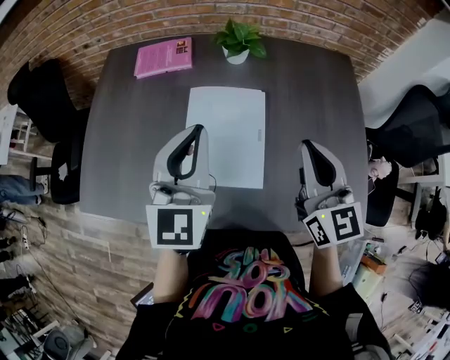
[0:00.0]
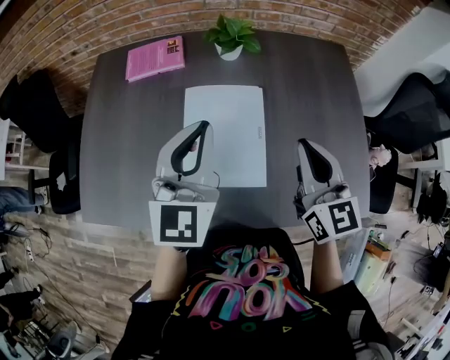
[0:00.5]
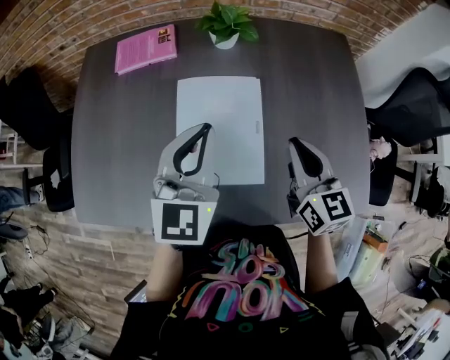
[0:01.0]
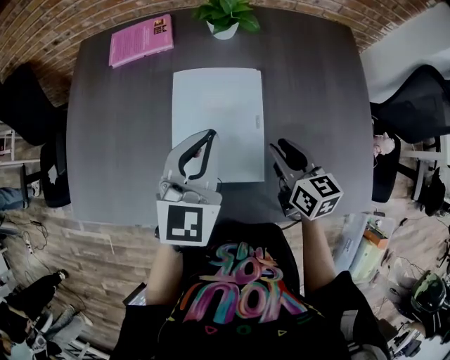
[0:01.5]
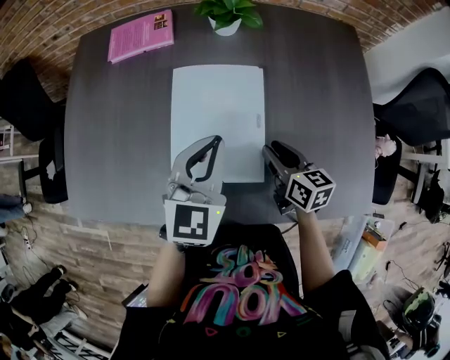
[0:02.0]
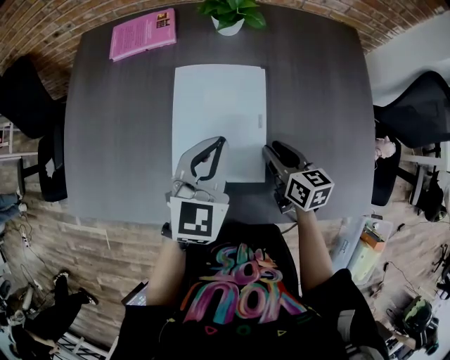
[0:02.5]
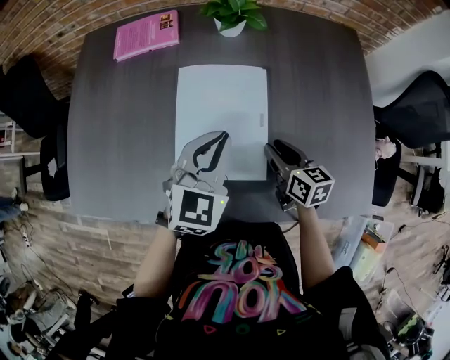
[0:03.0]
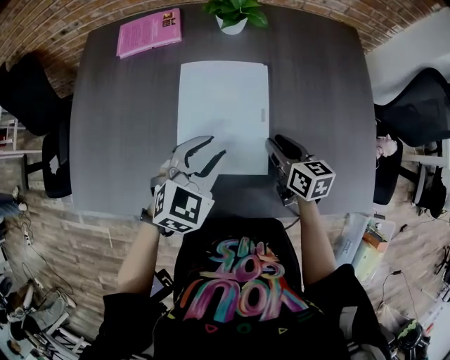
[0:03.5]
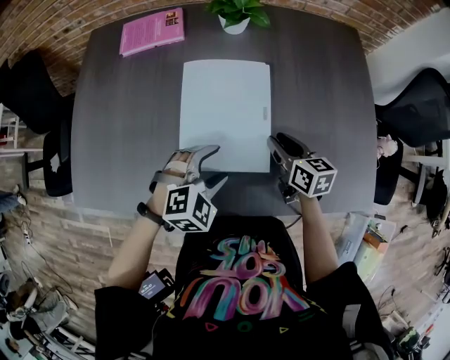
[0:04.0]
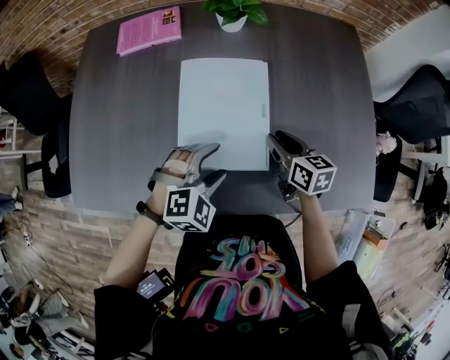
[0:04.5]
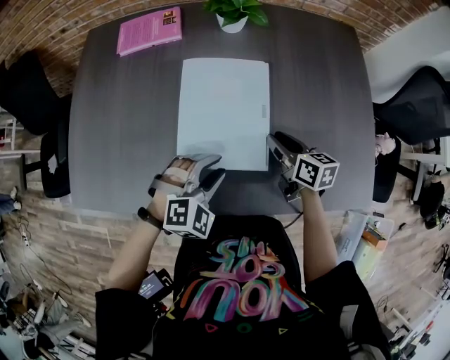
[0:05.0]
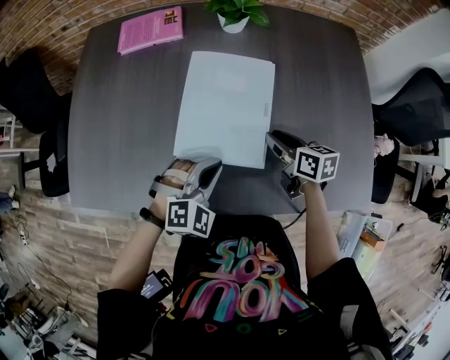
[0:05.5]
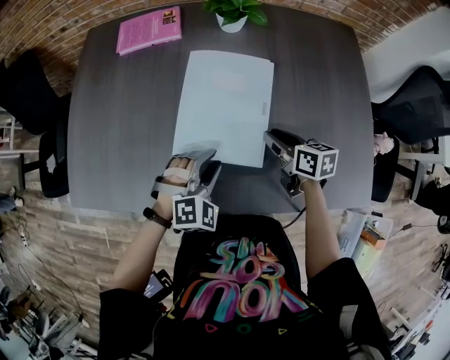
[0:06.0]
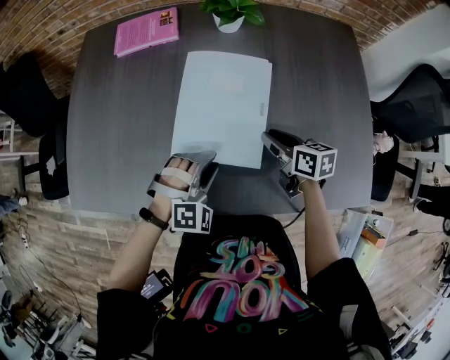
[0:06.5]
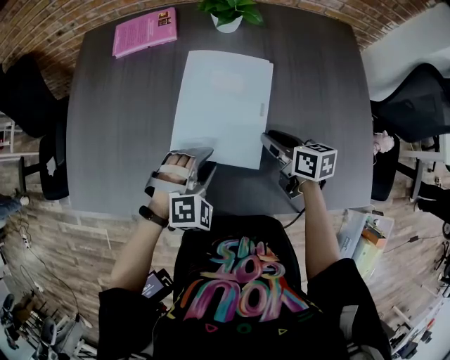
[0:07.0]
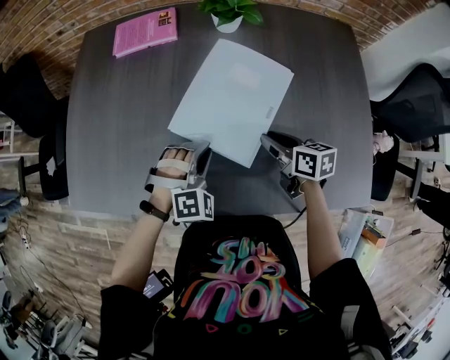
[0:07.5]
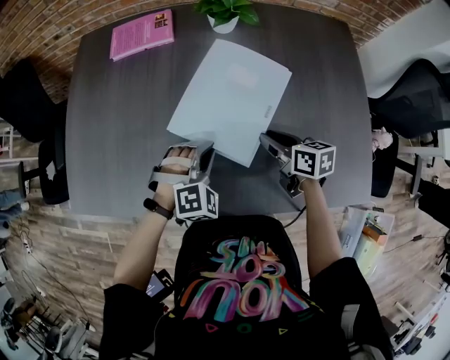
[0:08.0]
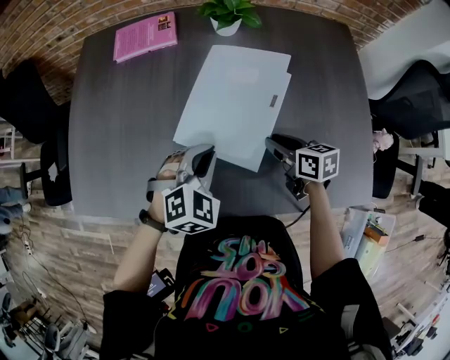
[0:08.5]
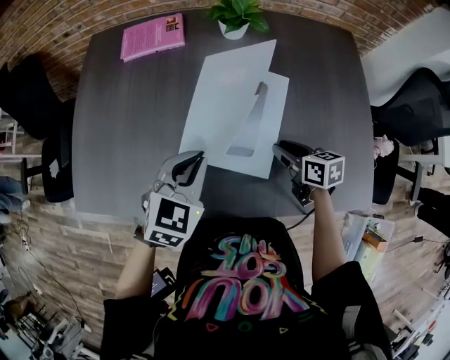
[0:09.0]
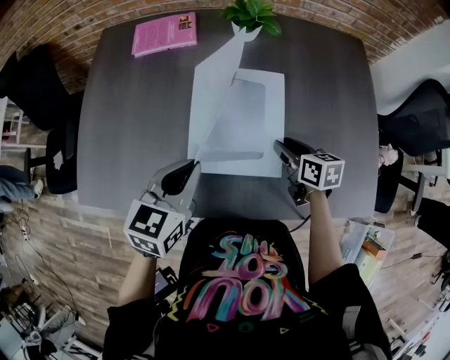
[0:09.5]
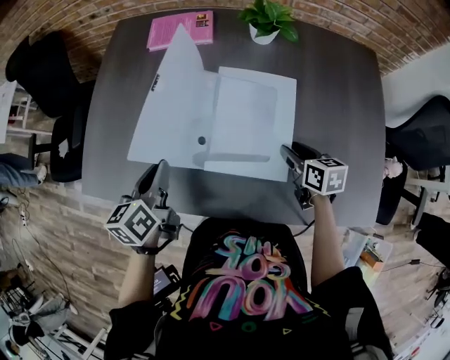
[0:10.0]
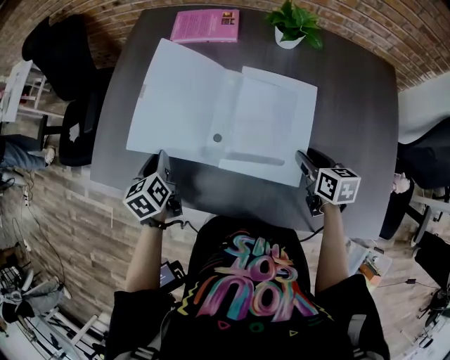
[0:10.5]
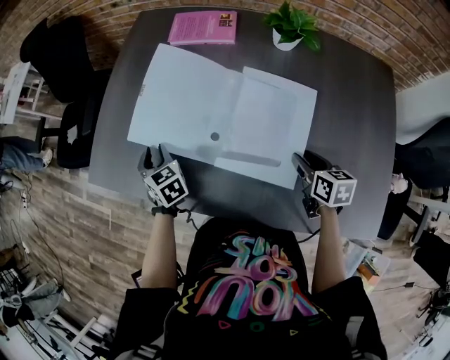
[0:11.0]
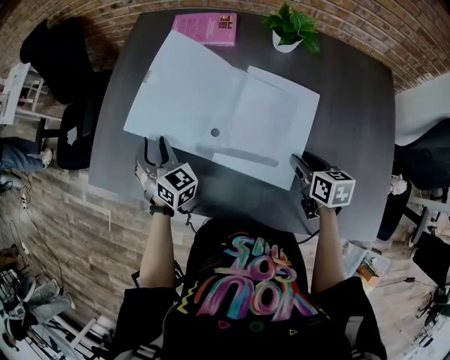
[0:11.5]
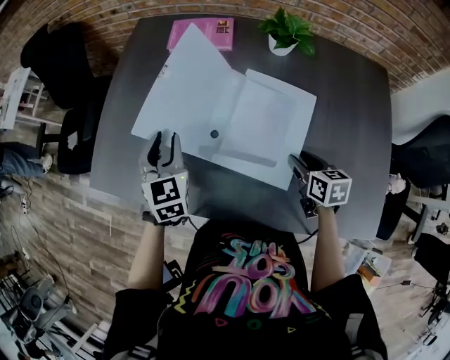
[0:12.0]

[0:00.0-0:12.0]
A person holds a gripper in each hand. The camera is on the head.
0:00.0 to 0:02.0: The right gripper is displaced downward by some 25 cm, rotates roughly 40 degrees, and opens up; the left gripper moves downward, roughly 15 cm.
0:02.0 to 0:04.0: The left gripper goes about 15 cm downward and backward, turns by approximately 50 degrees, and opens its fingers.
0:04.0 to 0:06.0: The left gripper closes up.
0:06.0 to 0:08.0: The left gripper closes.
0:08.0 to 0:10.0: The left gripper shifts some 20 cm to the left and upward, and twists roughly 100 degrees counterclockwise, seen from behind.
0:10.0 to 0:12.0: The left gripper goes downward and returns, about 10 cm each way, twists some 40 degrees clockwise, seen from behind, and opens up.

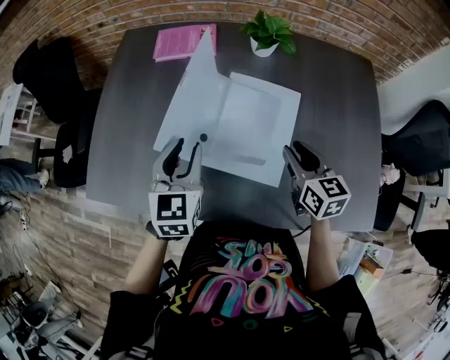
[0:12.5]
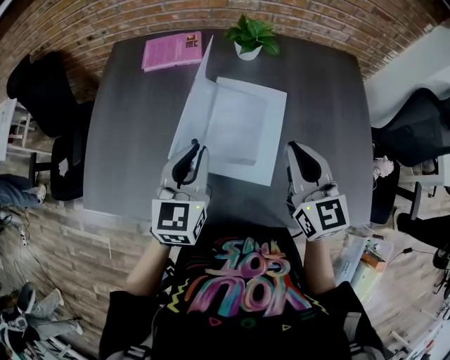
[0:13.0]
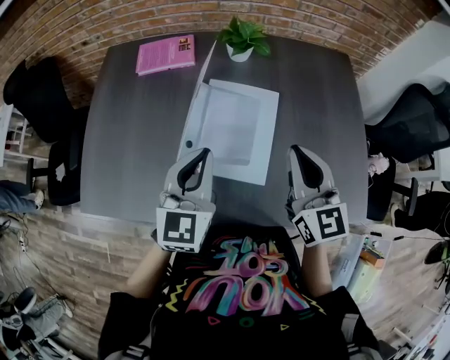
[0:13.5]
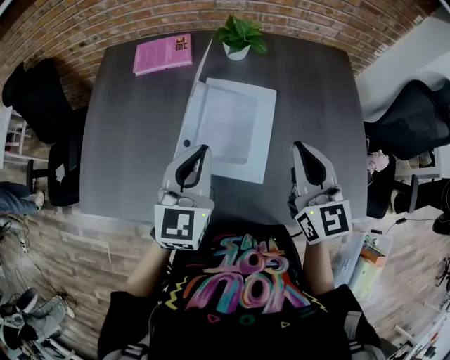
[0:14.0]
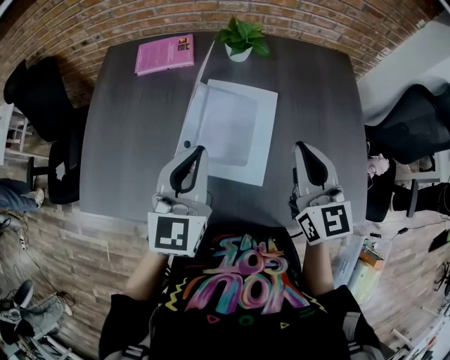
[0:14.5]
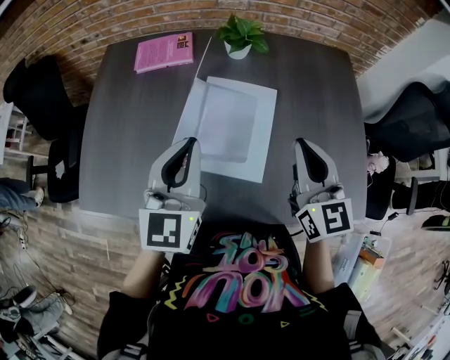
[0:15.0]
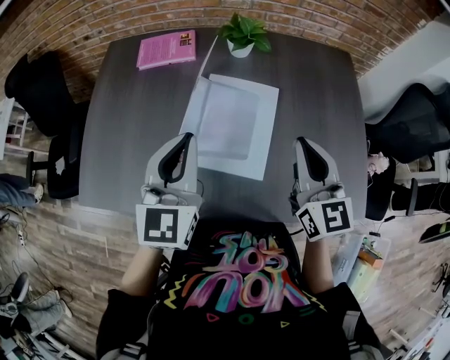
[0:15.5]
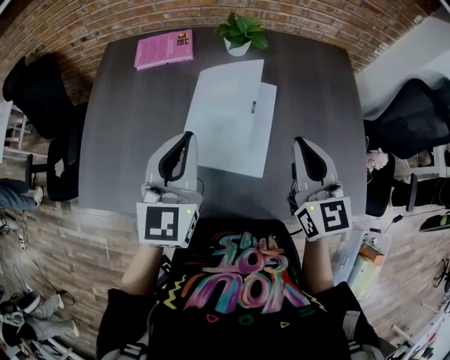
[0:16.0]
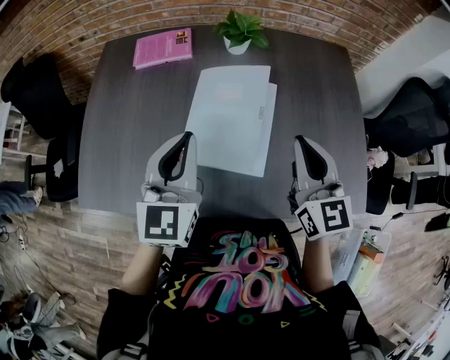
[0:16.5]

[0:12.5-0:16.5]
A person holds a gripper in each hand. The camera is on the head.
0:12.5 to 0:14.5: The left gripper heads to the right and upward, covering about 10 cm, and closes its fingers; the right gripper shifts roughly 15 cm upward, turns by approximately 30 degrees, and closes its fingers.
0:14.5 to 0:16.5: The grippers stay close to where they were, moving slightly.

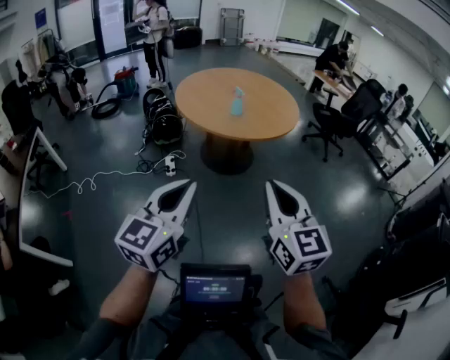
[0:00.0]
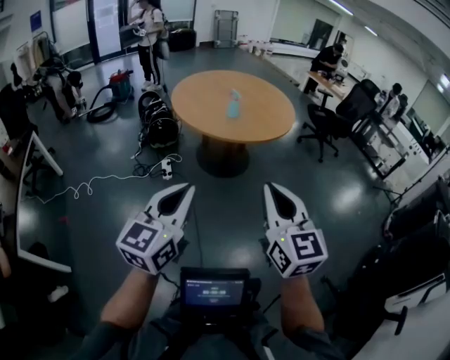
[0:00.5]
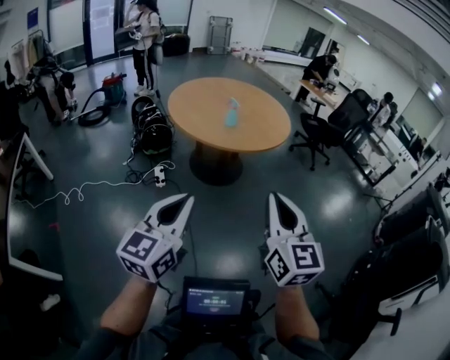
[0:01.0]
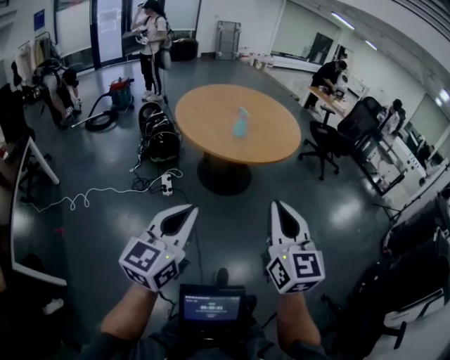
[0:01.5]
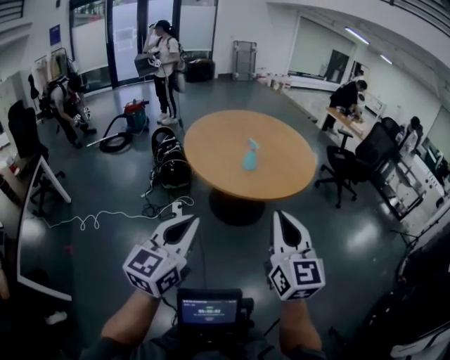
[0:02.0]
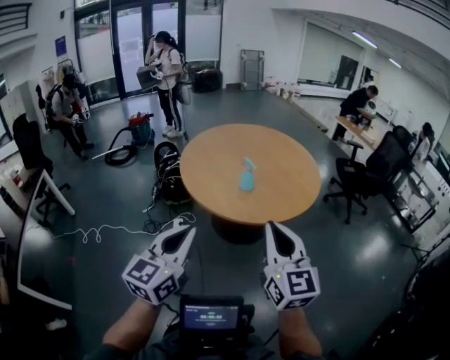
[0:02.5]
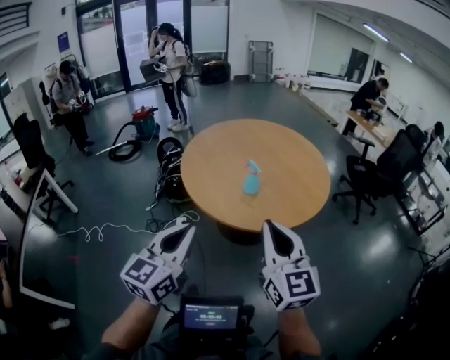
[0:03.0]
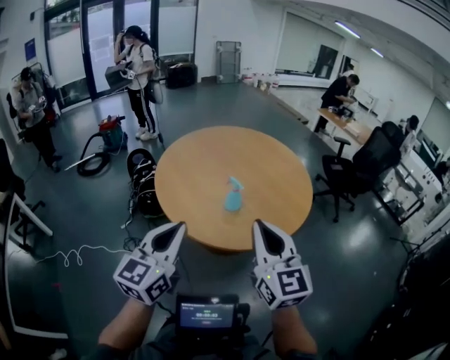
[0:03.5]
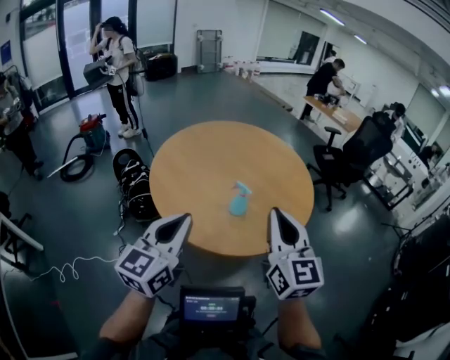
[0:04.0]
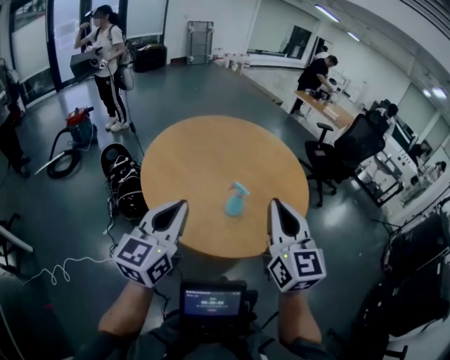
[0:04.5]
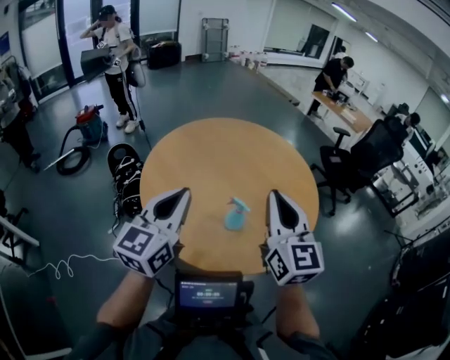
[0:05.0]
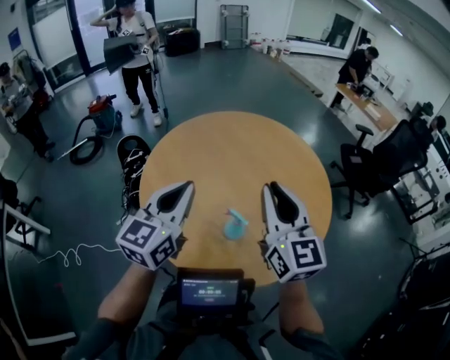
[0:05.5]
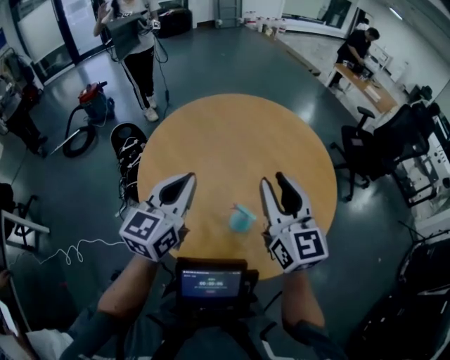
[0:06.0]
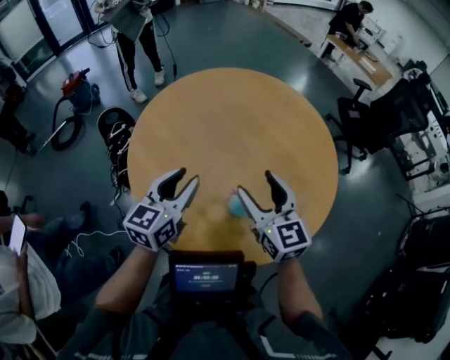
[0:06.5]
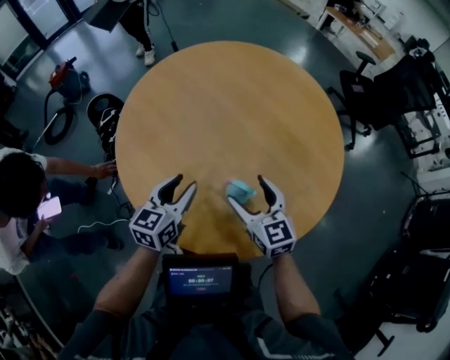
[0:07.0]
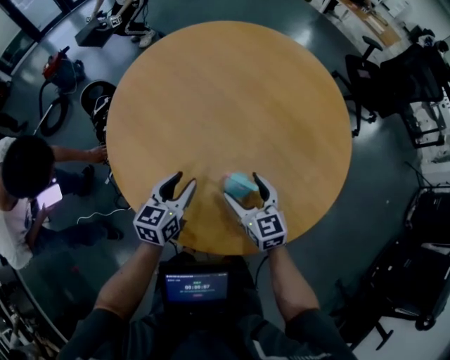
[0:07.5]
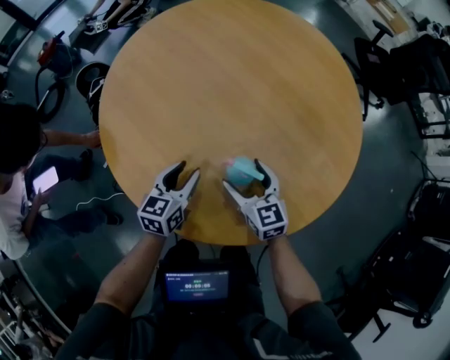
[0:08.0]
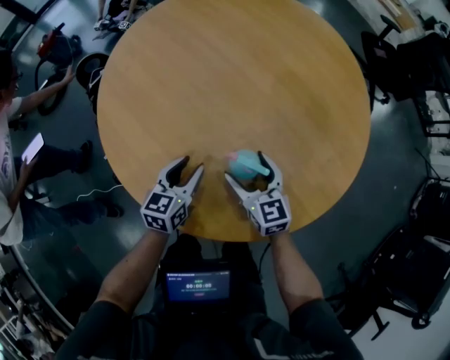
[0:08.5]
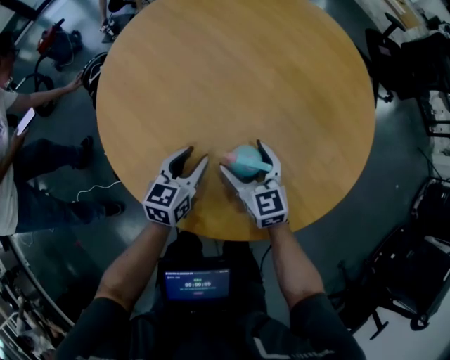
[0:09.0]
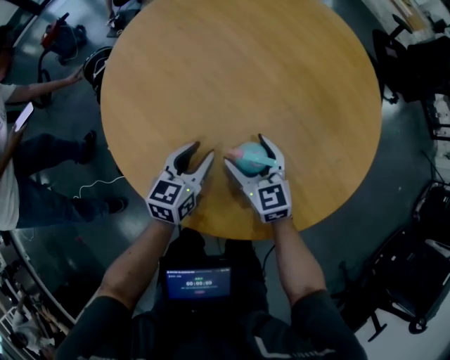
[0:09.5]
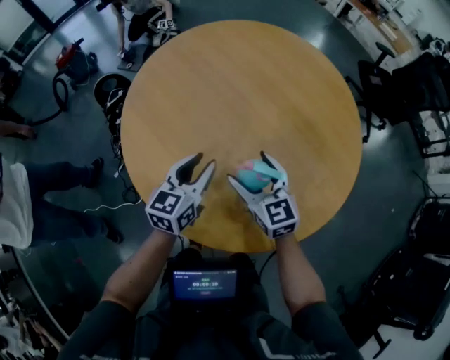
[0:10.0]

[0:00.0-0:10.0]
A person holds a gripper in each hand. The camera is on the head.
0:00.0 to 0:02.0: The grippers both shift forward by some 15 cm.
0:02.0 to 0:04.0: The grippers both shift forward by about 35 cm.
0:04.0 to 0:06.0: The grippers both shift forward by some 25 cm.
0:06.0 to 0:08.0: Both grippers move downward, some 30 cm. The right gripper rotates some 30 degrees, and opens its fingers. The left gripper changes its angle by some 30 degrees, and opens up.
0:08.0 to 0:10.0: Both grippers move upward, about 10 cm.

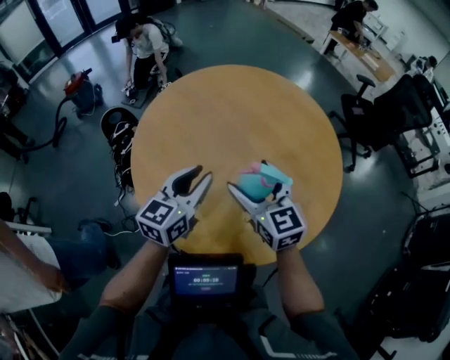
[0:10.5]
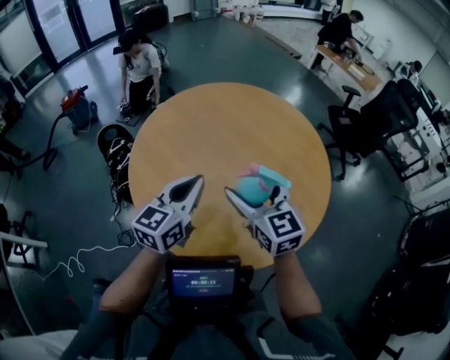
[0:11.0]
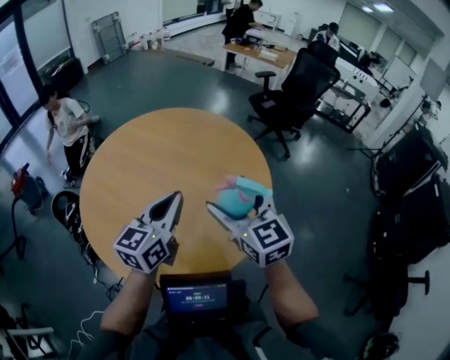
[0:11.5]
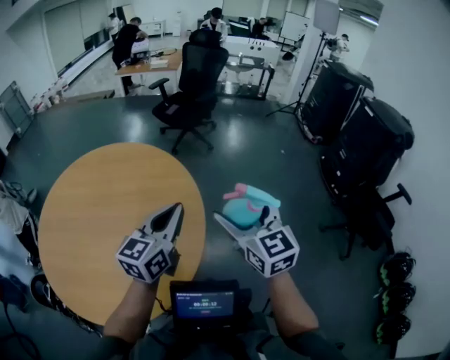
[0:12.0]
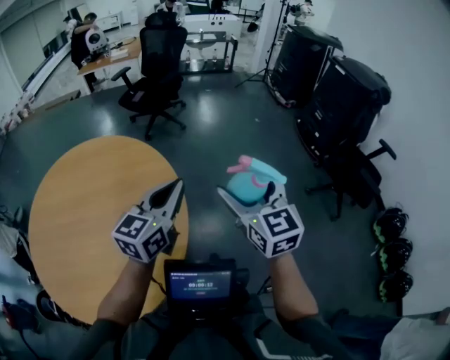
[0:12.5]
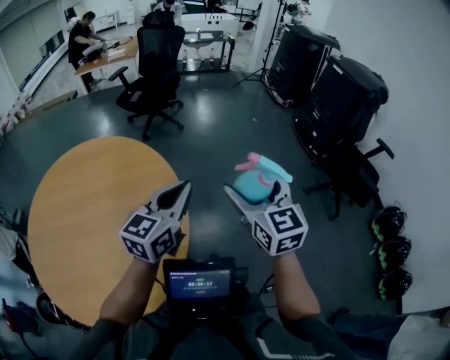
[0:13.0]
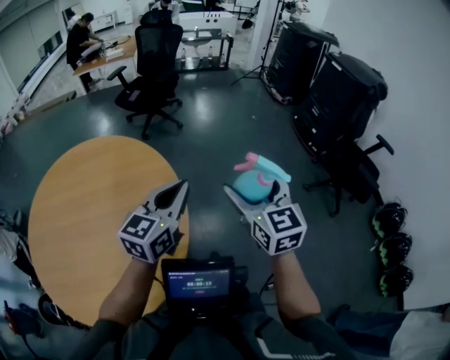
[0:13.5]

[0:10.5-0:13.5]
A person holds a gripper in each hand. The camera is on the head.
0:10.5 to 0:12.0: The right gripper ends up about 40 cm from where it was, and changes its angle by roughly 50 degrees, while the left gripper ends up some 35 cm from where it was, turns by approximately 50 degrees, and closes.
0:12.0 to 0:13.5: The grippers both shift to the right by some 10 cm.
